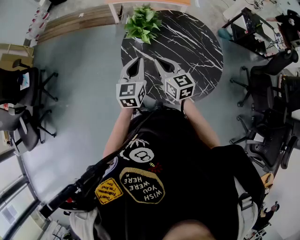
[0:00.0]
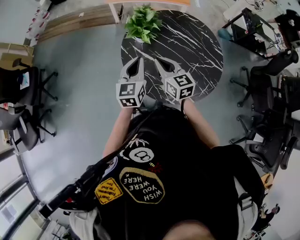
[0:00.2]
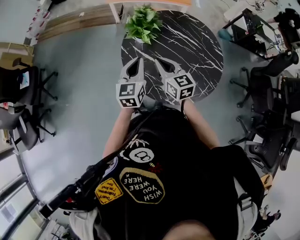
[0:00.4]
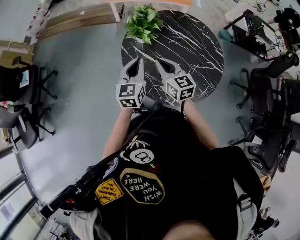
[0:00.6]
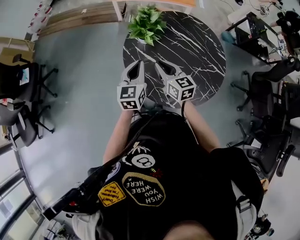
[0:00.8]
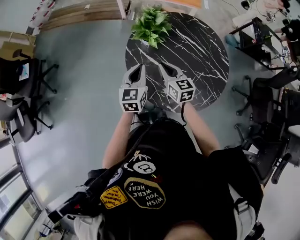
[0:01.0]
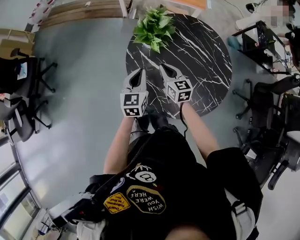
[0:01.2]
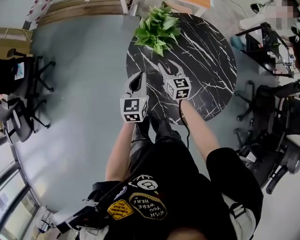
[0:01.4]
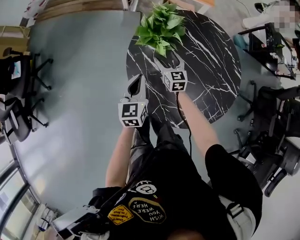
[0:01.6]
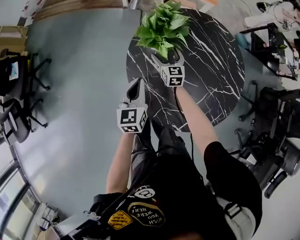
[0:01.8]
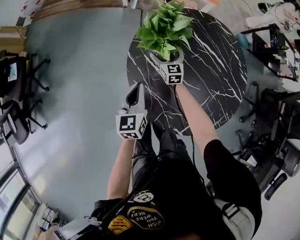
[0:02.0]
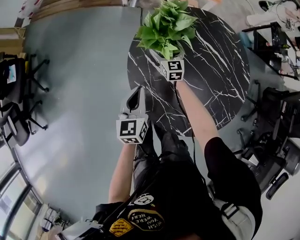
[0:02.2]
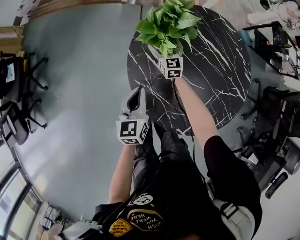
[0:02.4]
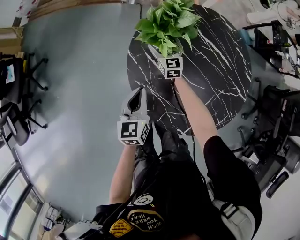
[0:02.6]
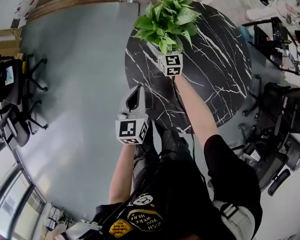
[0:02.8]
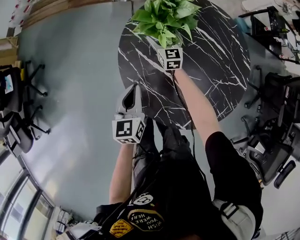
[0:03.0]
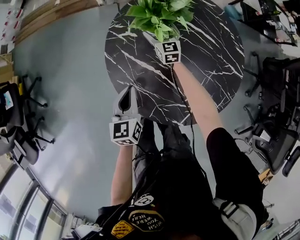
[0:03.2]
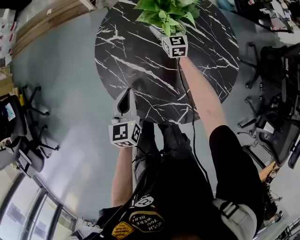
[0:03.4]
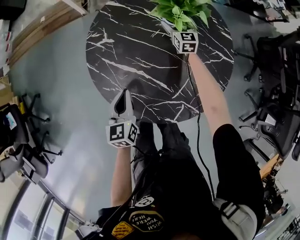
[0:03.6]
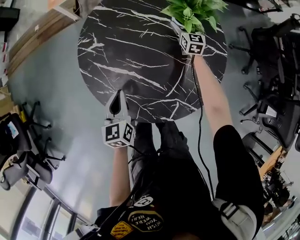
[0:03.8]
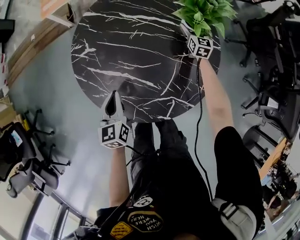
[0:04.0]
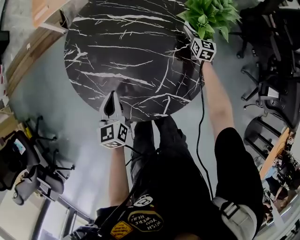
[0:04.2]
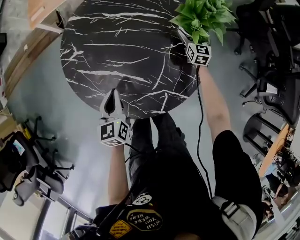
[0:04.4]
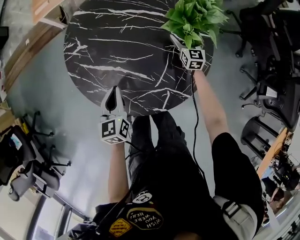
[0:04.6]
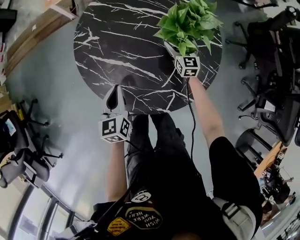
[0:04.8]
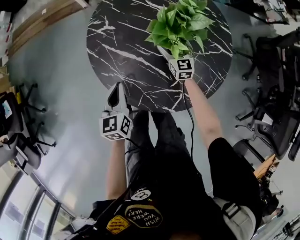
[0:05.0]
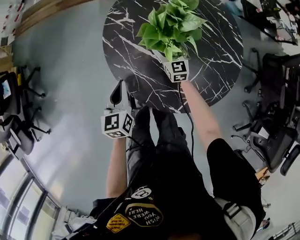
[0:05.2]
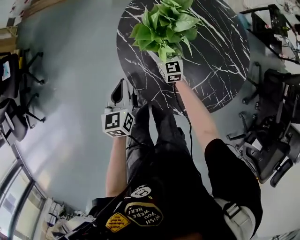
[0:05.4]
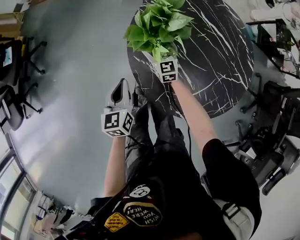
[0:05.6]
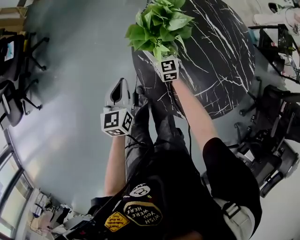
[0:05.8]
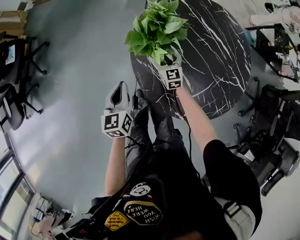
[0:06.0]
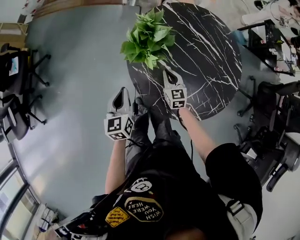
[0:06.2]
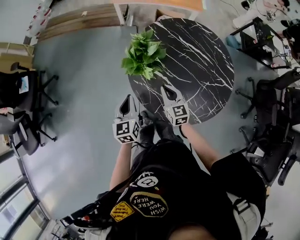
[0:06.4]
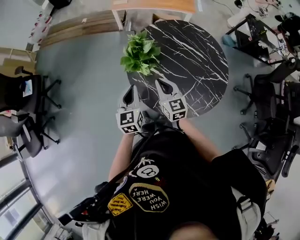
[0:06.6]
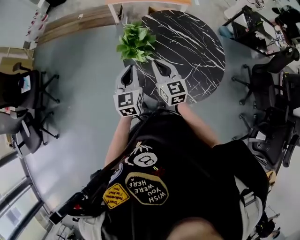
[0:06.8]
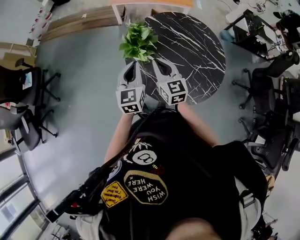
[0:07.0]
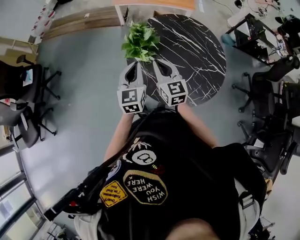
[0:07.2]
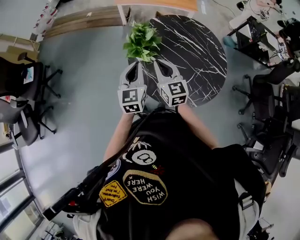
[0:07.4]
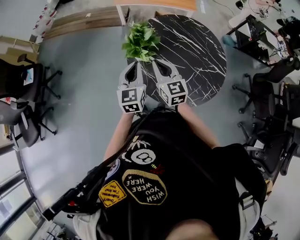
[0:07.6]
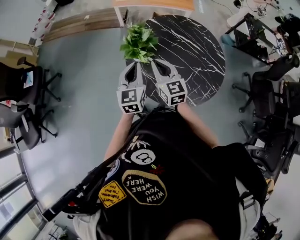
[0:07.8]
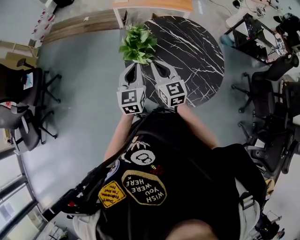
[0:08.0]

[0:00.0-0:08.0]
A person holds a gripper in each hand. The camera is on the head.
0:00.0 to 0:01.6: The left gripper goes some 20 cm downward and forward, while the right gripper is displaced downward and forward by roughly 30 cm, and opens up.
0:01.6 to 0:03.2: The right gripper is displaced forward, to the right and downward by some 15 cm. The left gripper goes roughly 5 cm downward.
0:03.2 to 0:04.8: The left gripper shifts by about 10 cm.
0:04.8 to 0:06.4: The right gripper moves approximately 35 cm, changes its angle by about 30 degrees, and closes its fingers; the left gripper ends up roughly 20 cm from where it was.
0:06.4 to 0:08.0: The right gripper goes about 15 cm upward. Meanwhile the left gripper travels upward and to the right by about 15 cm.

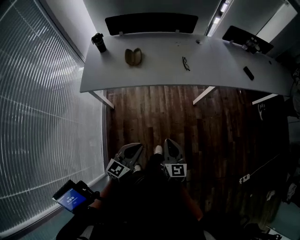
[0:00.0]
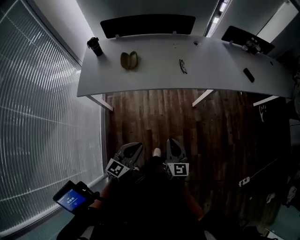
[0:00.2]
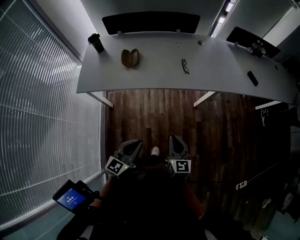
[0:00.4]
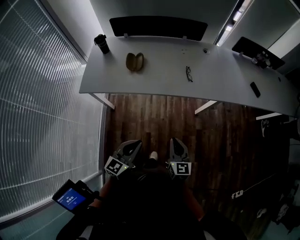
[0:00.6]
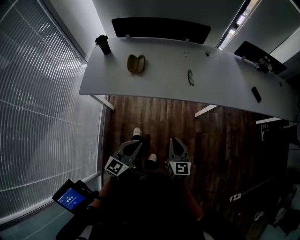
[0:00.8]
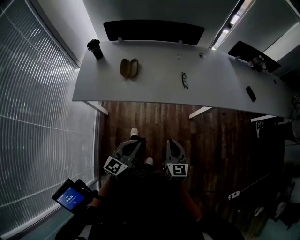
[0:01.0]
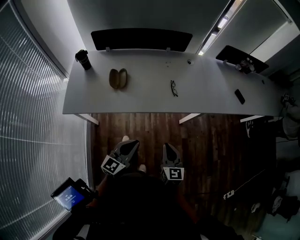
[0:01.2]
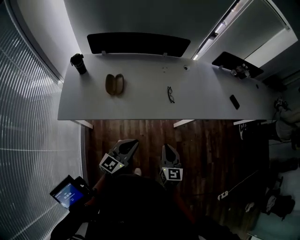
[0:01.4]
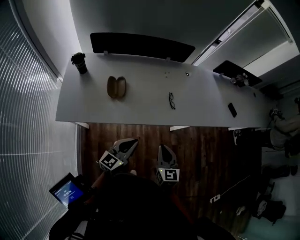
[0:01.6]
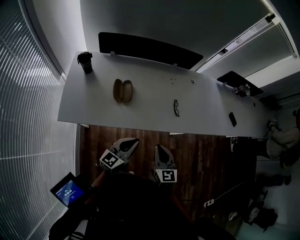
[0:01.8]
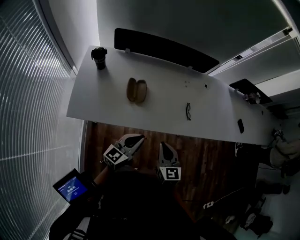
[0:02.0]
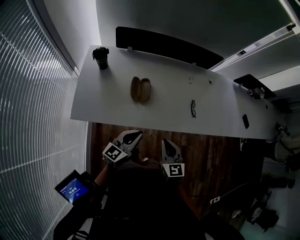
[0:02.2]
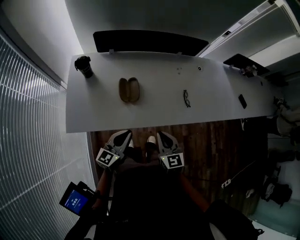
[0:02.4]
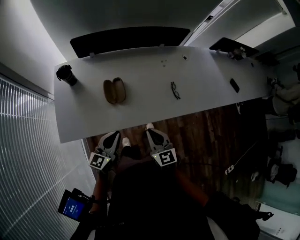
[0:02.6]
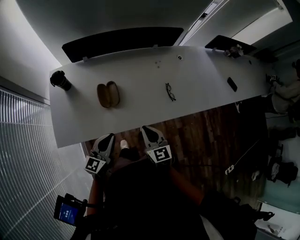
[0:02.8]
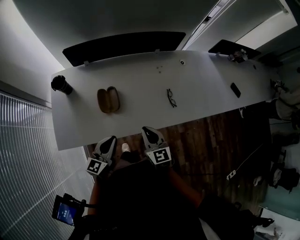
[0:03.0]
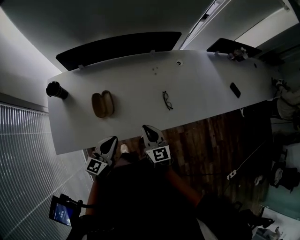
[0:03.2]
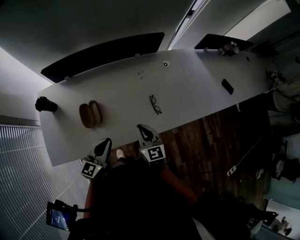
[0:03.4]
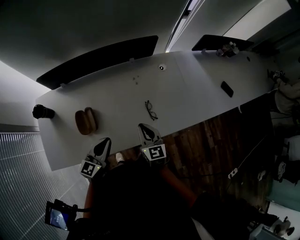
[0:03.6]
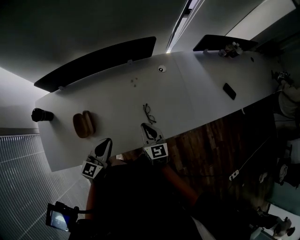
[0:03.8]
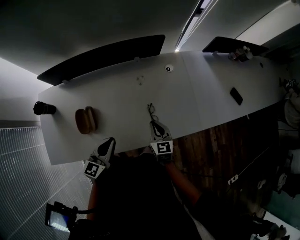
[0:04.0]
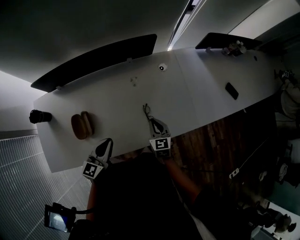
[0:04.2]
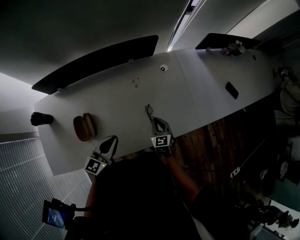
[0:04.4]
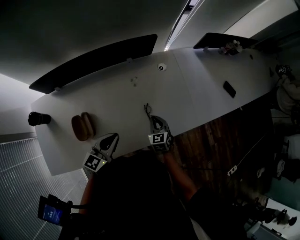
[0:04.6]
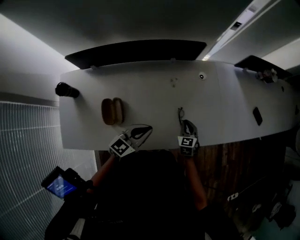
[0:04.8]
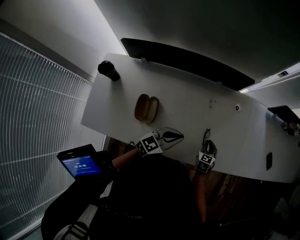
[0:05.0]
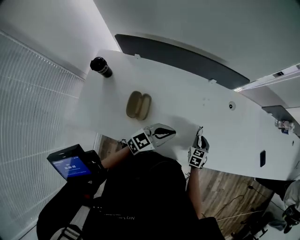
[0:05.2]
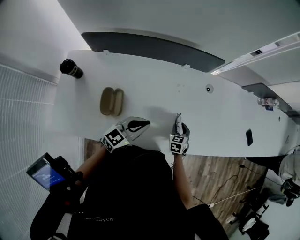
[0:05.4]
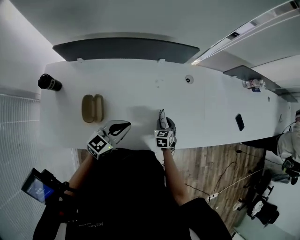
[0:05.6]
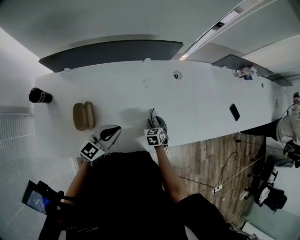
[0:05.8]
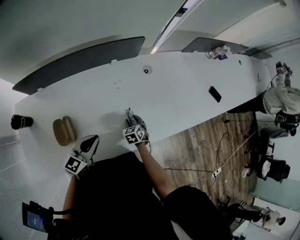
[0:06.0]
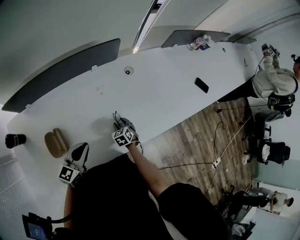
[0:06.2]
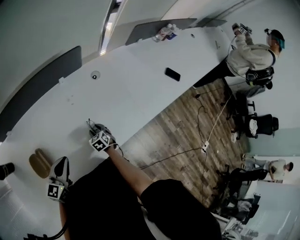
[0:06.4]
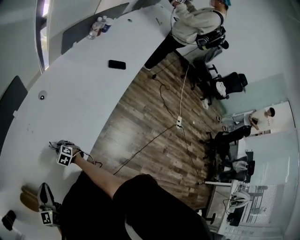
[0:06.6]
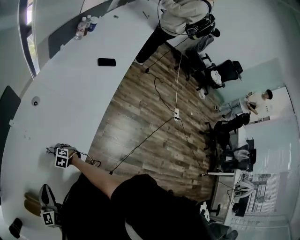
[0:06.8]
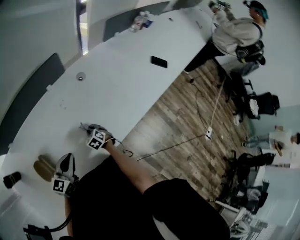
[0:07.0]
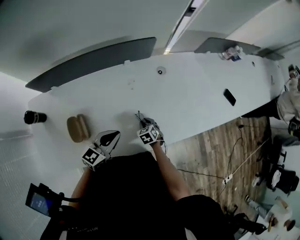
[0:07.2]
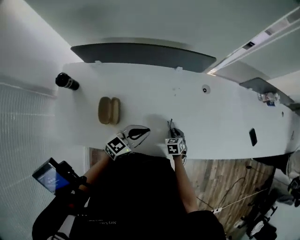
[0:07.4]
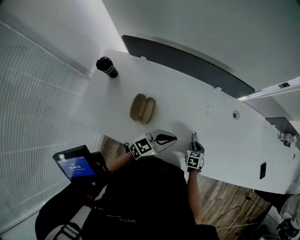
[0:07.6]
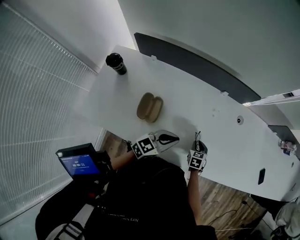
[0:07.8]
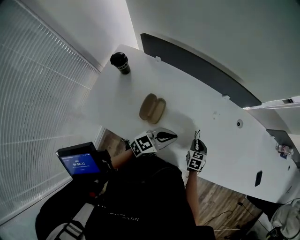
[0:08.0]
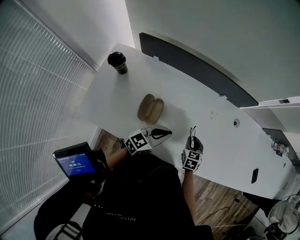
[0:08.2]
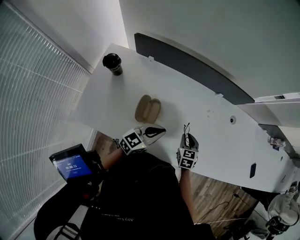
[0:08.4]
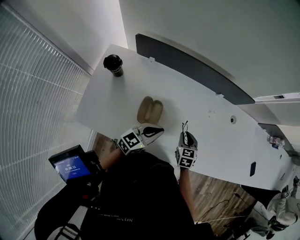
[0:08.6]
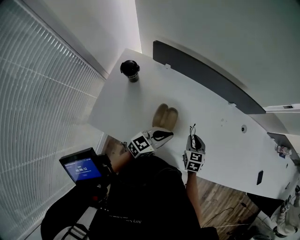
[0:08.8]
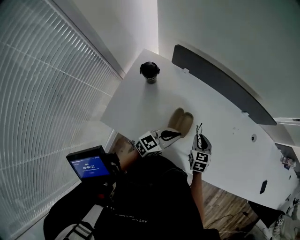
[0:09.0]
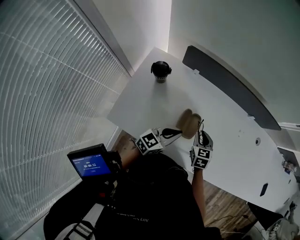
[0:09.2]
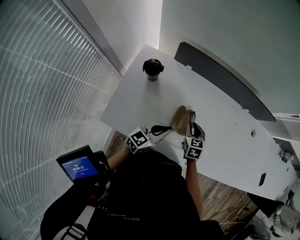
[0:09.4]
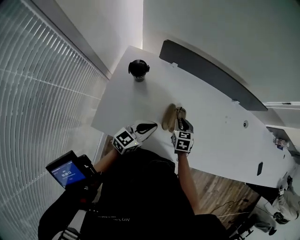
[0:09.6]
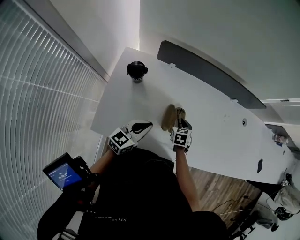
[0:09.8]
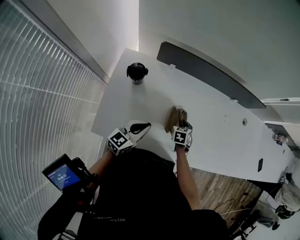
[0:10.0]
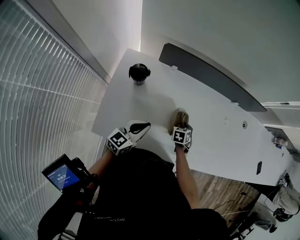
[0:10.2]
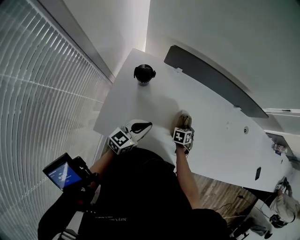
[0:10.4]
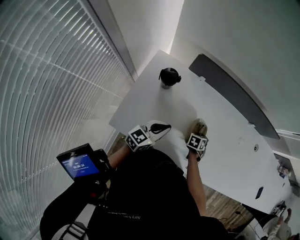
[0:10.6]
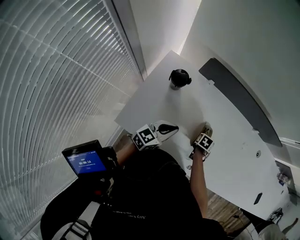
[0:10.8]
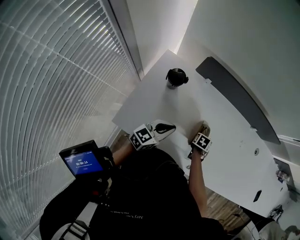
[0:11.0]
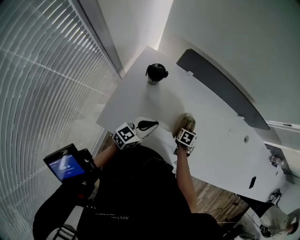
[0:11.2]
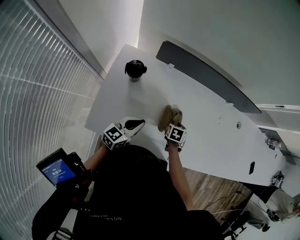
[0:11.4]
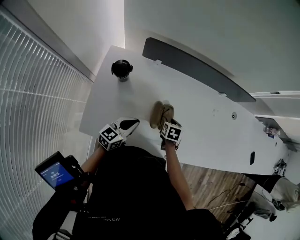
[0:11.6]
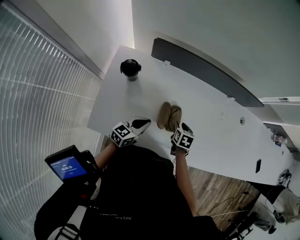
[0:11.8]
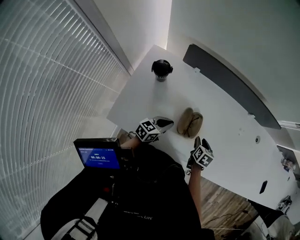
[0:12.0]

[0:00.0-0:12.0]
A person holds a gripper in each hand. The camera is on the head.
0:00.0 to 0:01.6: Both grippers move forward, roughly 30 cm.
0:01.6 to 0:03.0: The right gripper heads forward and to the left, covering about 20 cm, while the left gripper moves to the left and forward, about 15 cm.
0:03.0 to 0:04.4: The left gripper moves forward and to the right, some 25 cm; the right gripper is displaced forward, to the right and downward by approximately 35 cm.
0:04.4 to 0:06.0: The right gripper moves downward, approximately 15 cm, changes its angle by about 20 degrees, and opens up.
0:06.0 to 0:07.6: The right gripper closes.
0:07.6 to 0:09.0: The right gripper heads to the left and upward, covering approximately 30 cm. The left gripper moves to the left, approximately 25 cm.
0:09.0 to 0:10.4: The right gripper travels downward by about 15 cm, and turns by about 30 degrees. The left gripper heads to the left, covering approximately 15 cm.
0:10.4 to 0:12.0: The right gripper goes some 5 cm upward, and changes its angle by roughly 30 degrees, while the left gripper travels downward by approximately 10 cm.

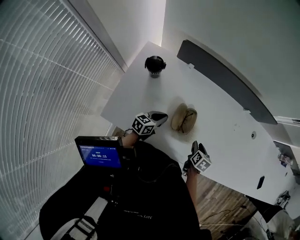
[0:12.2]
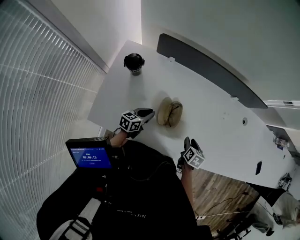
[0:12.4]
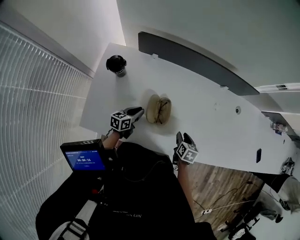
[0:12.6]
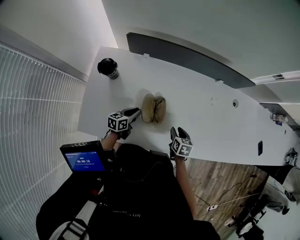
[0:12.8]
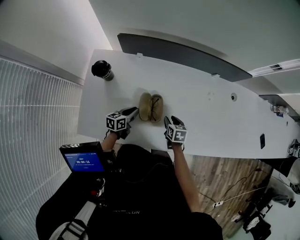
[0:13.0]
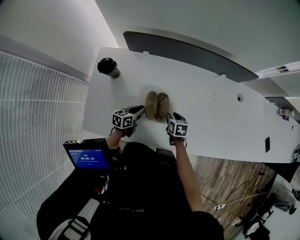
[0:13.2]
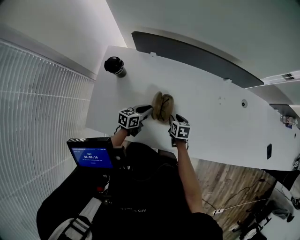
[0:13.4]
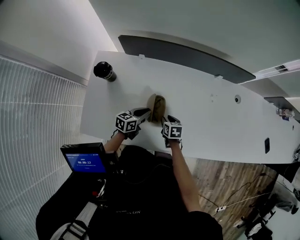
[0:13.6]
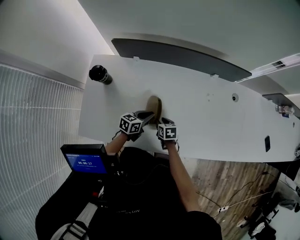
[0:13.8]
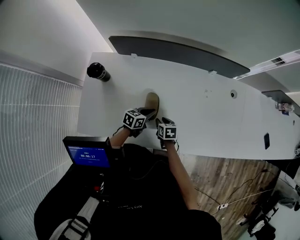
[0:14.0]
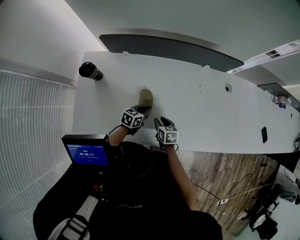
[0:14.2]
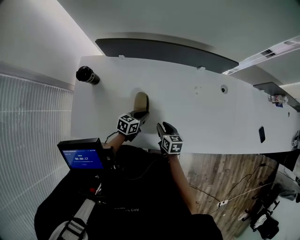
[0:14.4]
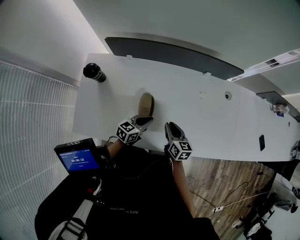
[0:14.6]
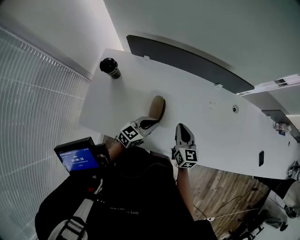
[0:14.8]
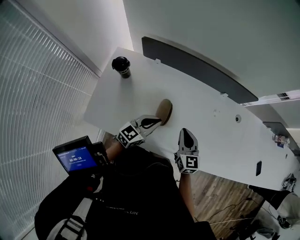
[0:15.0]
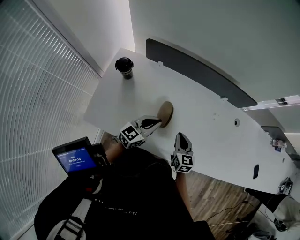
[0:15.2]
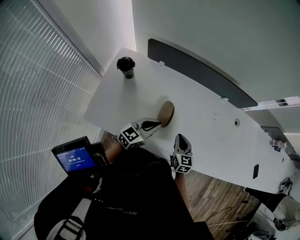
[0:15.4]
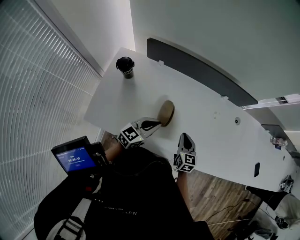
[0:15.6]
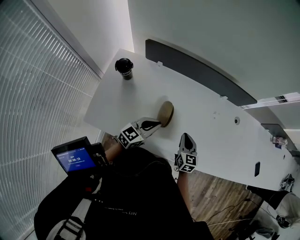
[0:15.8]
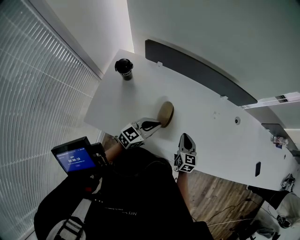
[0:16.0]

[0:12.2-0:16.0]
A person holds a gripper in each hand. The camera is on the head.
0:12.2 to 0:13.4: The right gripper moves to the left, approximately 5 cm, while the left gripper moves to the right, some 5 cm.
0:13.4 to 0:14.8: The left gripper goes some 15 cm to the right and upward, and turns by some 30 degrees, while the right gripper moves upward and to the right, about 20 cm, angles its fingers upward, by roughly 30 degrees, and closes.
0:14.8 to 0:16.0: The right gripper ends up some 5 cm from where it was; the left gripper changes place by approximately 5 cm.
